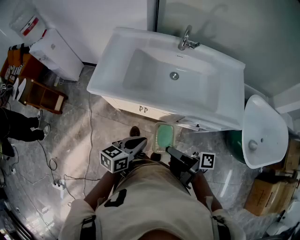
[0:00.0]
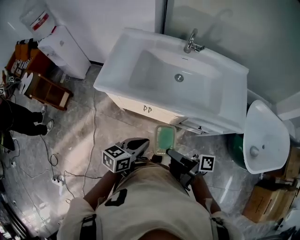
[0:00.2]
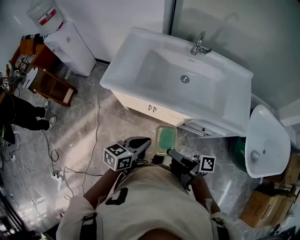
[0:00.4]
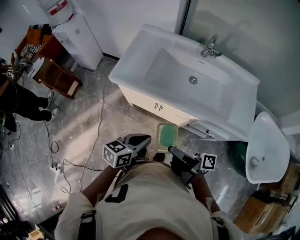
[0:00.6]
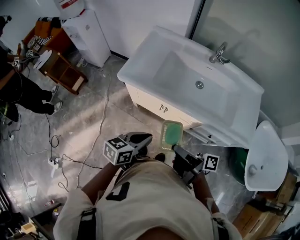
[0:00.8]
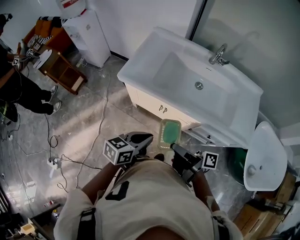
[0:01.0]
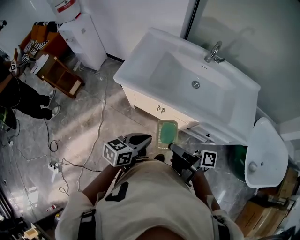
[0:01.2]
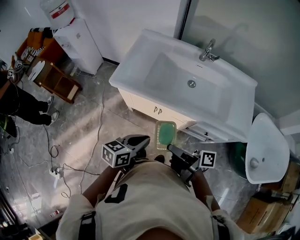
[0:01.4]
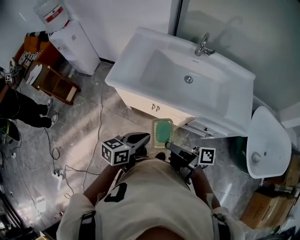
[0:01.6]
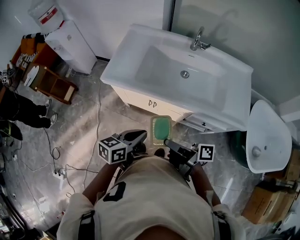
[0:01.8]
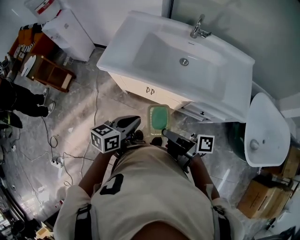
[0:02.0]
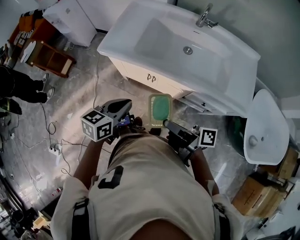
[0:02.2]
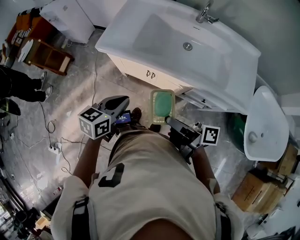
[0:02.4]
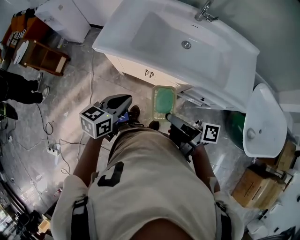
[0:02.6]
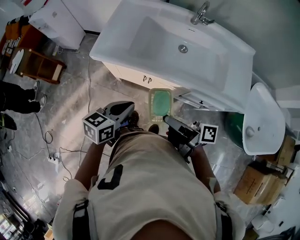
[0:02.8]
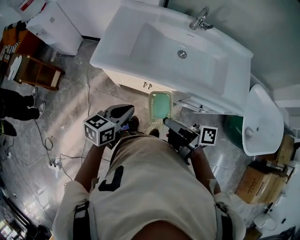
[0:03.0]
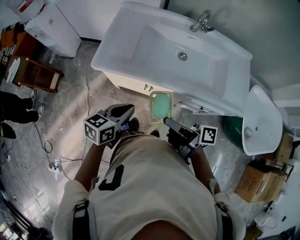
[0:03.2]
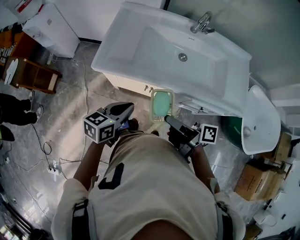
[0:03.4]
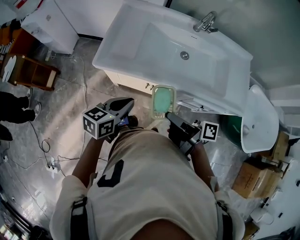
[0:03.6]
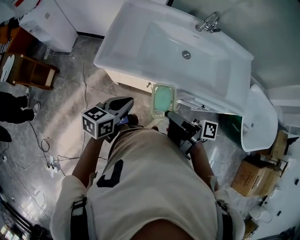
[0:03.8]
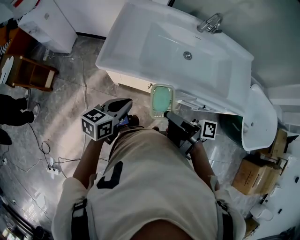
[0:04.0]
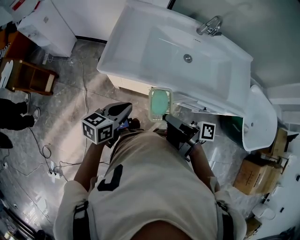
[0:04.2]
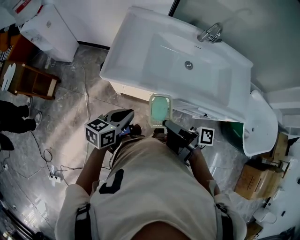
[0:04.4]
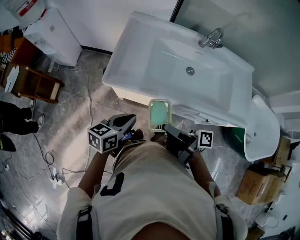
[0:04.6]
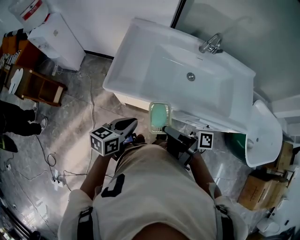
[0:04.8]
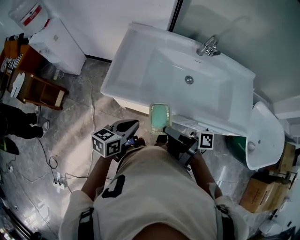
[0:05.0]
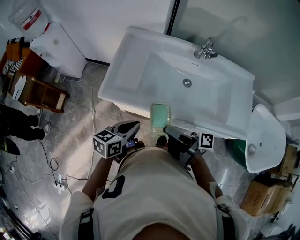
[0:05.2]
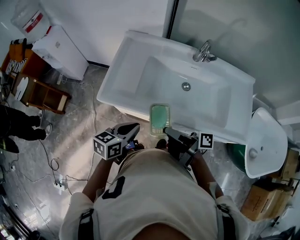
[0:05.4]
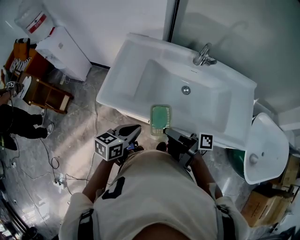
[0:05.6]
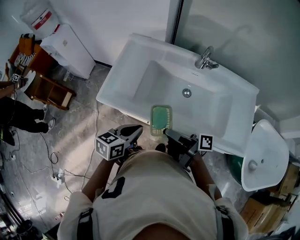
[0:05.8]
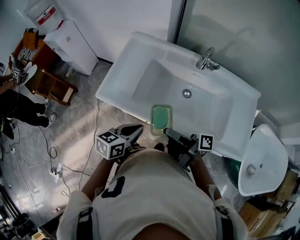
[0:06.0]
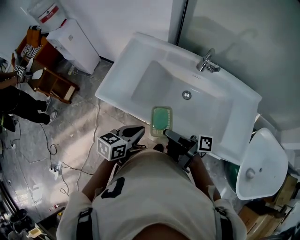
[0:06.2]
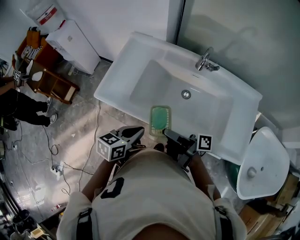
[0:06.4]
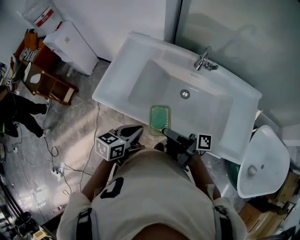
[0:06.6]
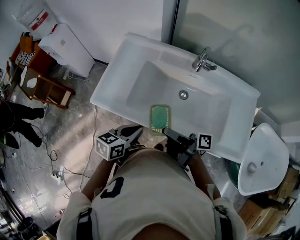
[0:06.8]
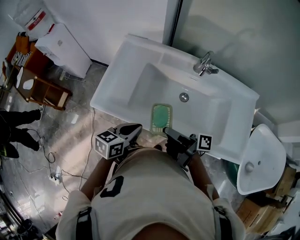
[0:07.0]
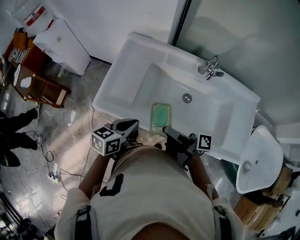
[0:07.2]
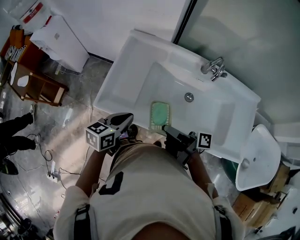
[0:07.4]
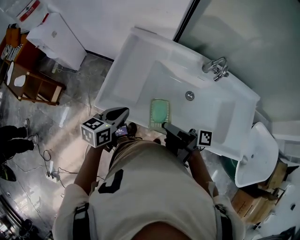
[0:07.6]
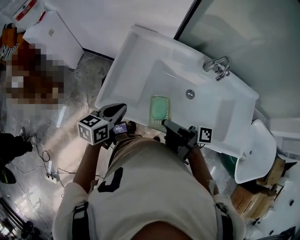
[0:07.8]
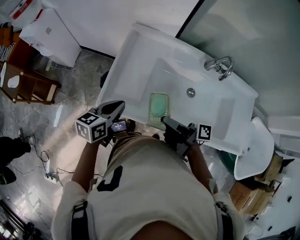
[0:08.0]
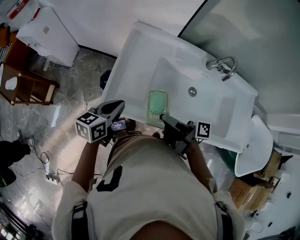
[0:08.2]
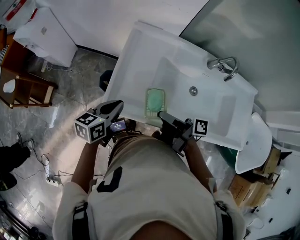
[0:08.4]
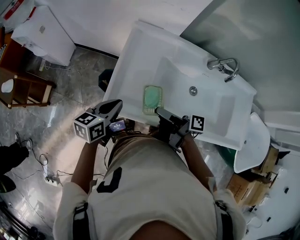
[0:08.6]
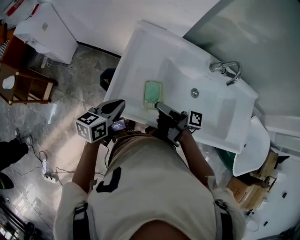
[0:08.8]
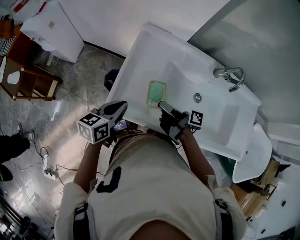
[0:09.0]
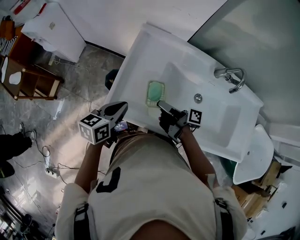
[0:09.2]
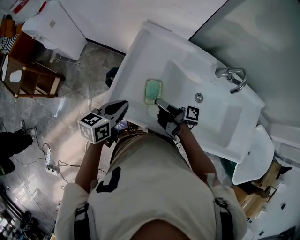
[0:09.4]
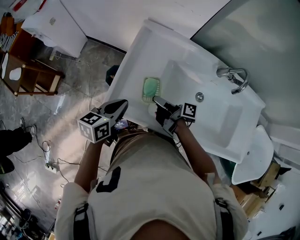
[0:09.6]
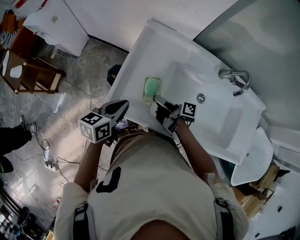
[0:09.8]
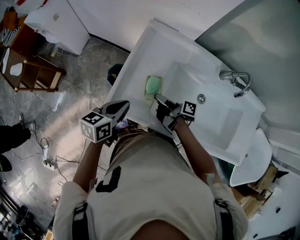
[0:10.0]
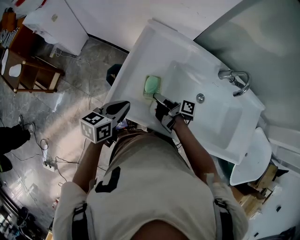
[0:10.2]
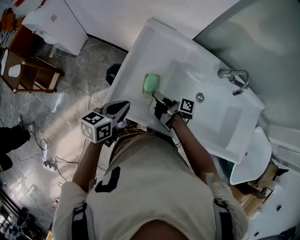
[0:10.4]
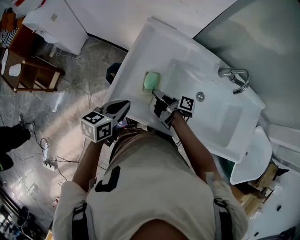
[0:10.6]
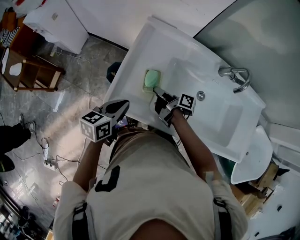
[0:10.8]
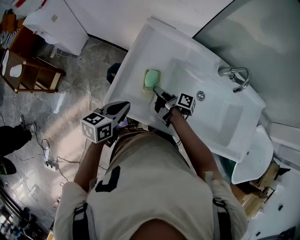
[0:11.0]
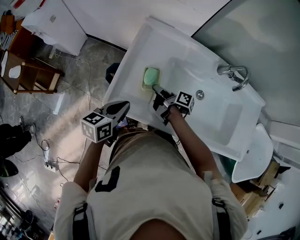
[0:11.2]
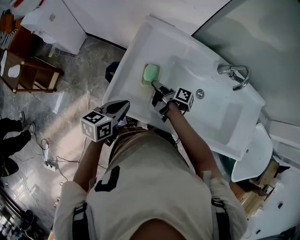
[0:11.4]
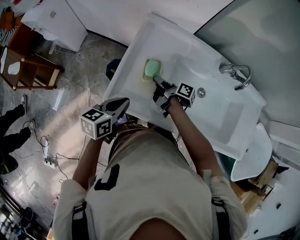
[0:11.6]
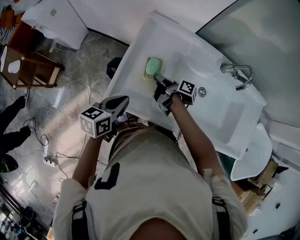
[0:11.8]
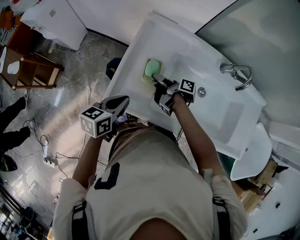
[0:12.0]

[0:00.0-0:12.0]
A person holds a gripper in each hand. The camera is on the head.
0:00.0 to 0:01.6: The left gripper ends up about 5 cm from where it was.
0:01.6 to 0:03.0: The left gripper shifts by about 10 cm.
0:03.0 to 0:04.4: The left gripper changes place by about 10 cm.
0:04.4 to 0:06.0: The left gripper shifts by roughly 15 cm.
0:06.0 to 0:07.6: The left gripper ends up approximately 20 cm from where it was.
0:07.6 to 0:09.0: The left gripper moves approximately 10 cm.

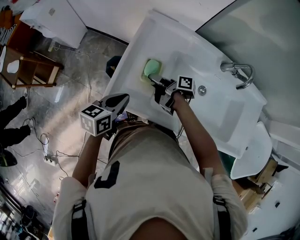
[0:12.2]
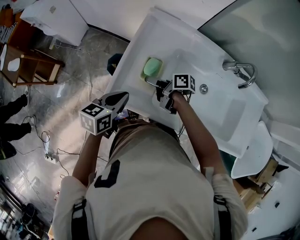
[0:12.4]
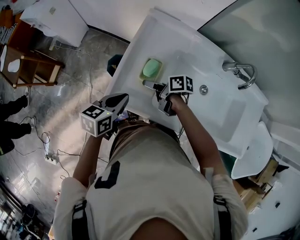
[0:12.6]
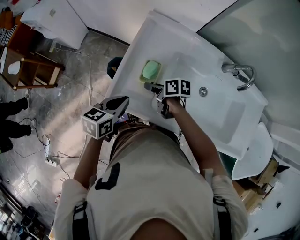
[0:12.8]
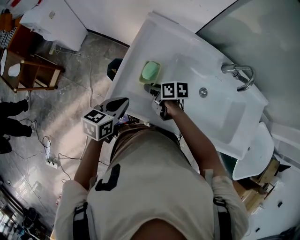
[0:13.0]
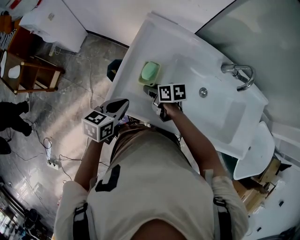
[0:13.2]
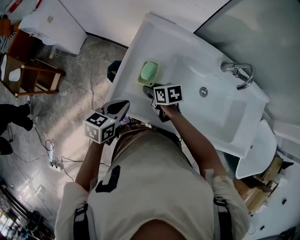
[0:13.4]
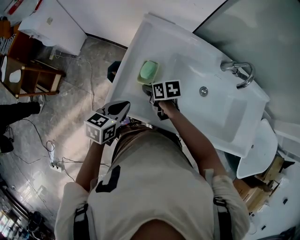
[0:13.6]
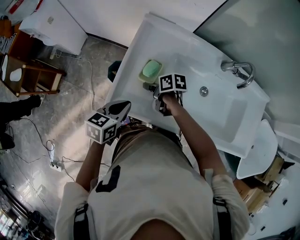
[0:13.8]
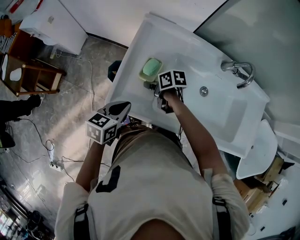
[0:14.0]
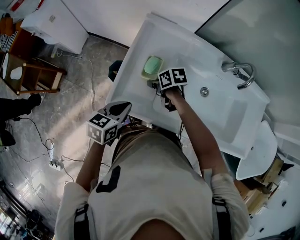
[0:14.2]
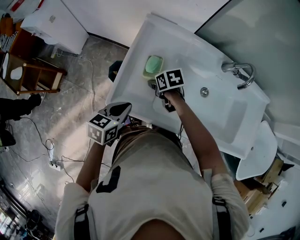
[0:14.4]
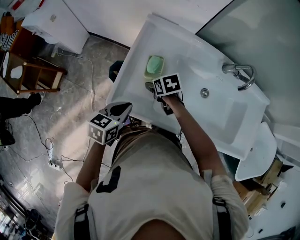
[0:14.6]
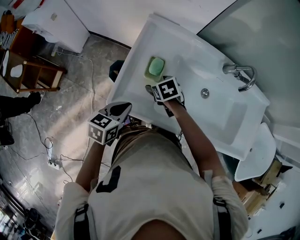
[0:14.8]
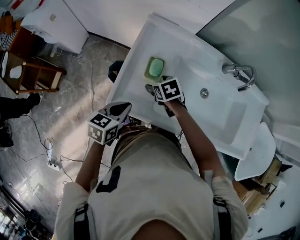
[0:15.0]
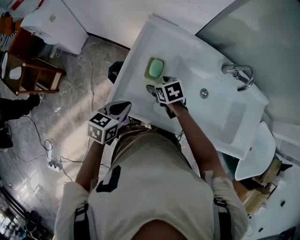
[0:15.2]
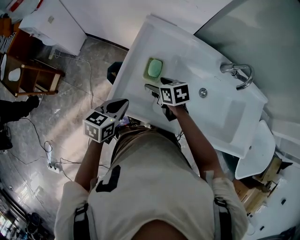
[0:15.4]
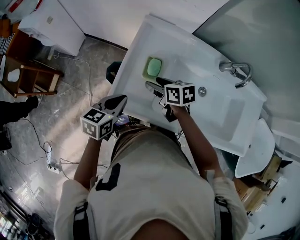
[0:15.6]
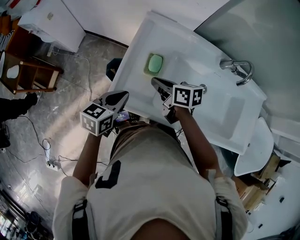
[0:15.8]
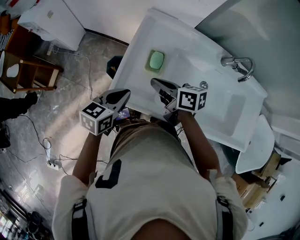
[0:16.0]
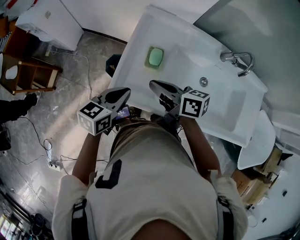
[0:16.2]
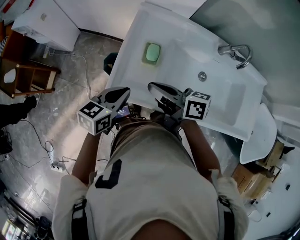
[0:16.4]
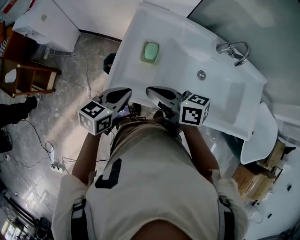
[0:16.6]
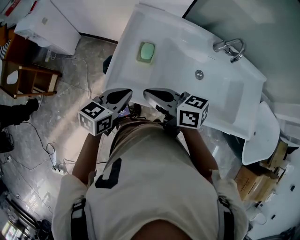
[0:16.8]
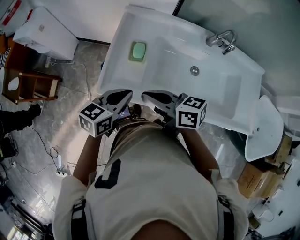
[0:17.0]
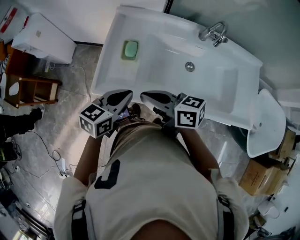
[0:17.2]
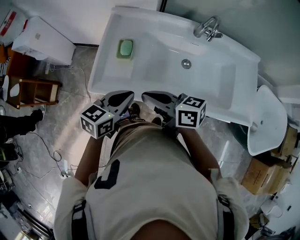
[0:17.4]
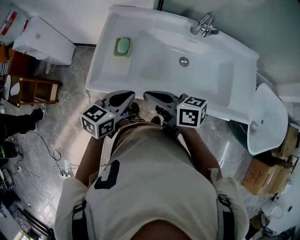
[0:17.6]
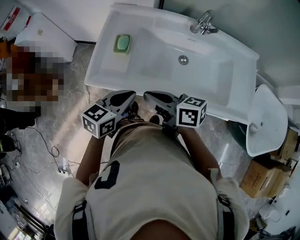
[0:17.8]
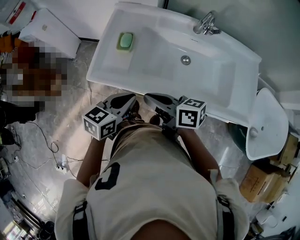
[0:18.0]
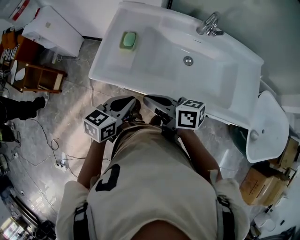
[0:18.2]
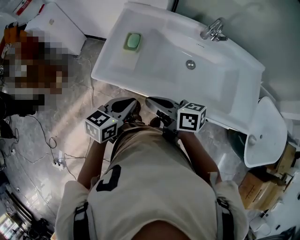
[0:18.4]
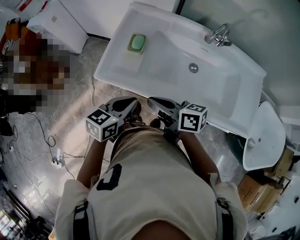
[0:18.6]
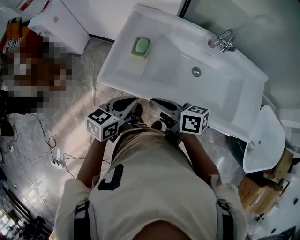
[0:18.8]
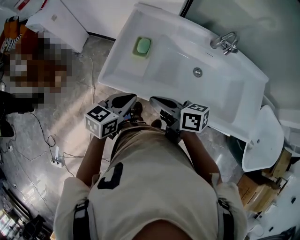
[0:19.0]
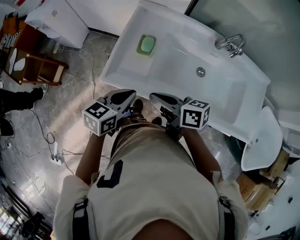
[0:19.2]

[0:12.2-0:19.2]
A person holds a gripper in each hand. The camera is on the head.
0:16.4 to 0:17.8: The left gripper ends up roughly 20 cm from where it was.
0:17.8 to 0:19.2: The left gripper ends up about 10 cm from where it was.

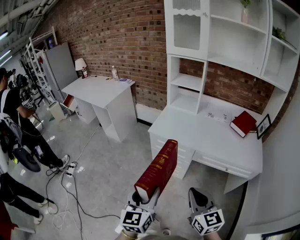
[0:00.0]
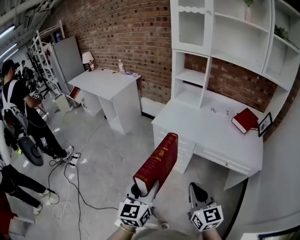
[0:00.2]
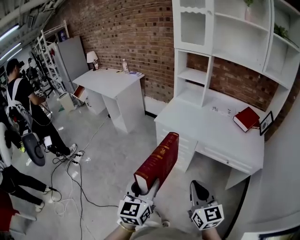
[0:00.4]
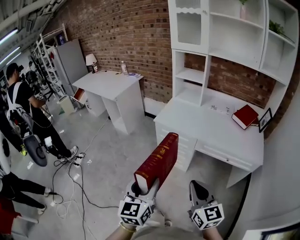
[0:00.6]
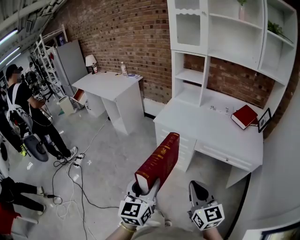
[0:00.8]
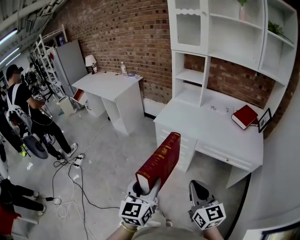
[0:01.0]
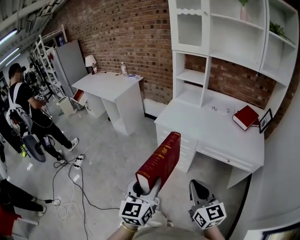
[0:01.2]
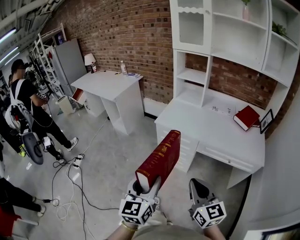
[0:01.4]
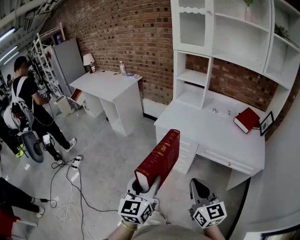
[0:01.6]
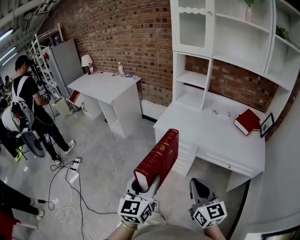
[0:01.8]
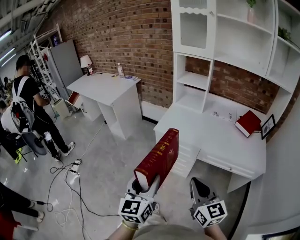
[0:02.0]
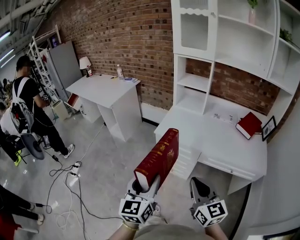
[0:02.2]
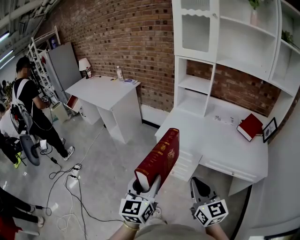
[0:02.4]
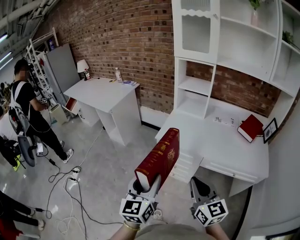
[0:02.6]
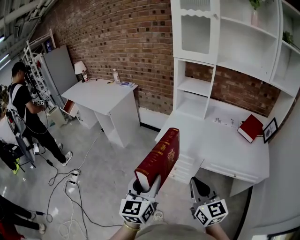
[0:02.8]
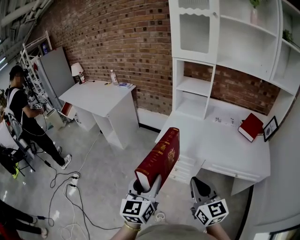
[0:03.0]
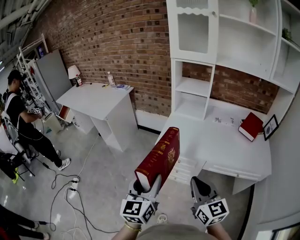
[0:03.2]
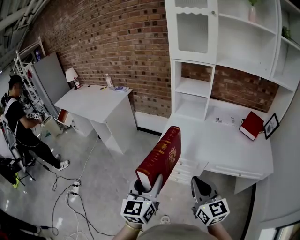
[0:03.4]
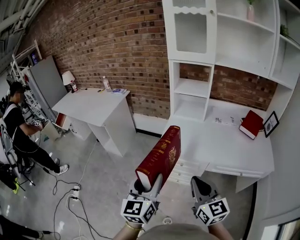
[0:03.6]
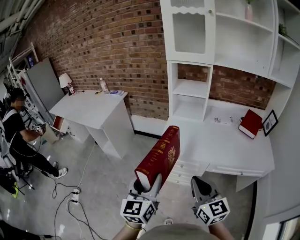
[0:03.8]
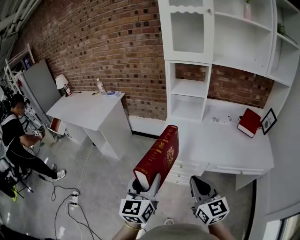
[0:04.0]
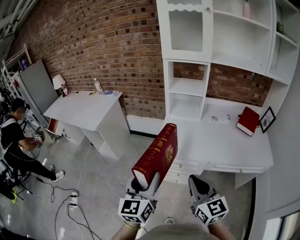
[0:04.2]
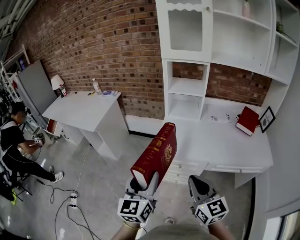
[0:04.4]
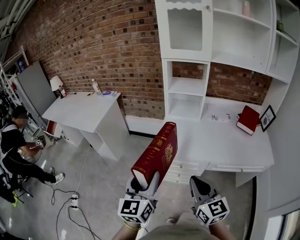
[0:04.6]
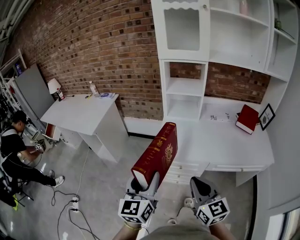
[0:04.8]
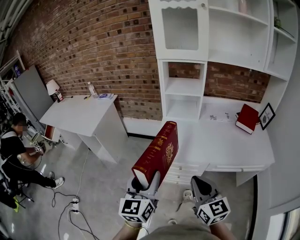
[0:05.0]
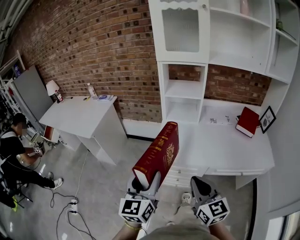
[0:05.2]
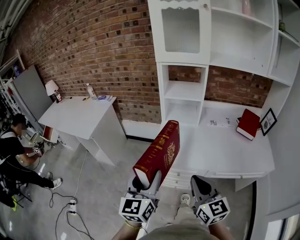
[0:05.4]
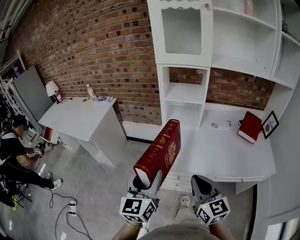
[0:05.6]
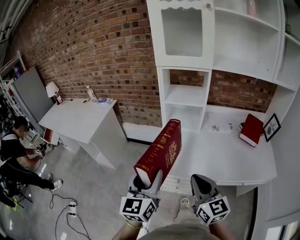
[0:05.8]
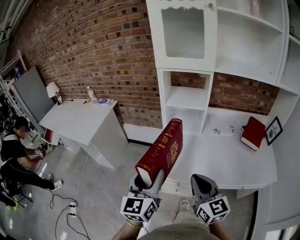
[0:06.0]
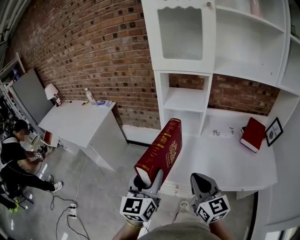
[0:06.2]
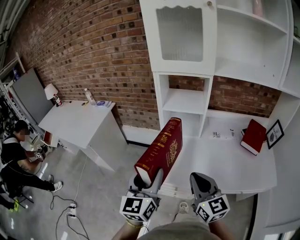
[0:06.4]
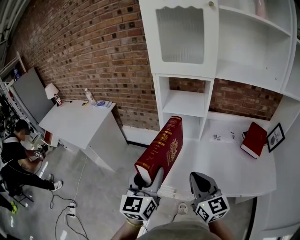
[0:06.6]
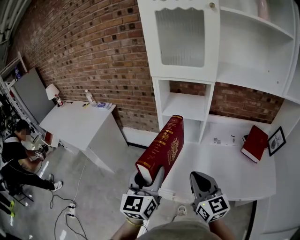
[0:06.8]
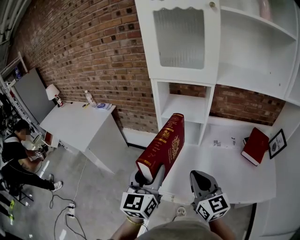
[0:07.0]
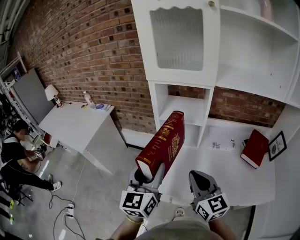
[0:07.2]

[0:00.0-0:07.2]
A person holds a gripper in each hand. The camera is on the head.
0:01.4 to 0:02.8: The two grippers go some 15 cm forward.
0:02.8 to 0:04.4: The two grippers go roughly 15 cm forward and to the left.
0:04.4 to 0:05.8: The two grippers go some 10 cm forward.
0:05.8 to 0:07.2: The two grippers go approximately 15 cm forward and to the right.
